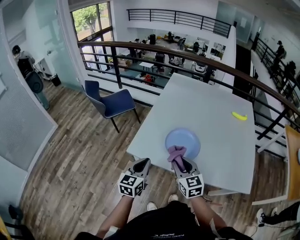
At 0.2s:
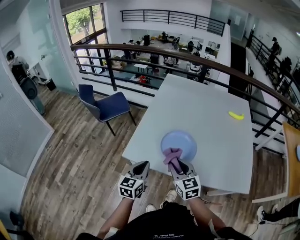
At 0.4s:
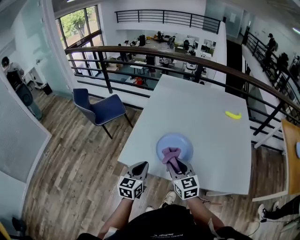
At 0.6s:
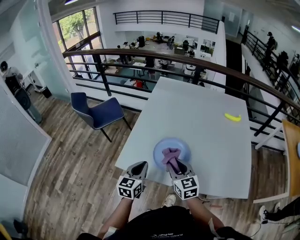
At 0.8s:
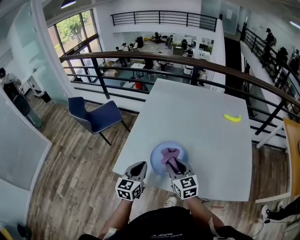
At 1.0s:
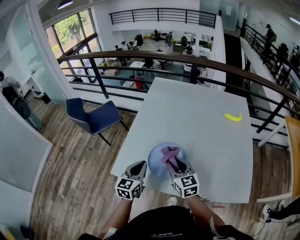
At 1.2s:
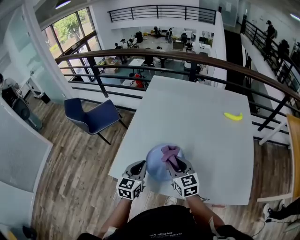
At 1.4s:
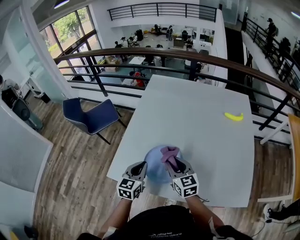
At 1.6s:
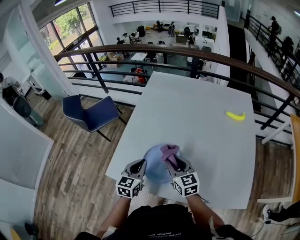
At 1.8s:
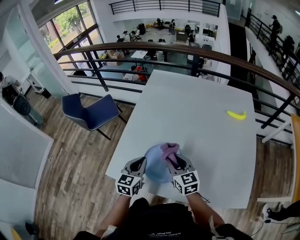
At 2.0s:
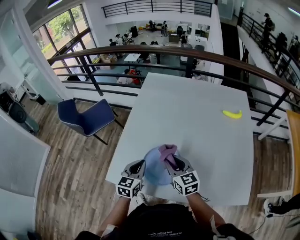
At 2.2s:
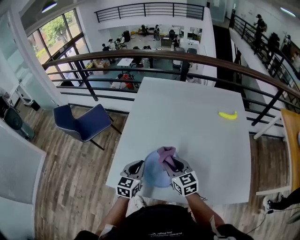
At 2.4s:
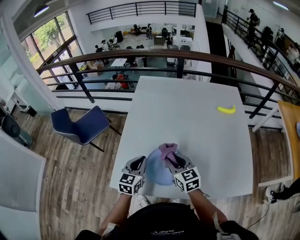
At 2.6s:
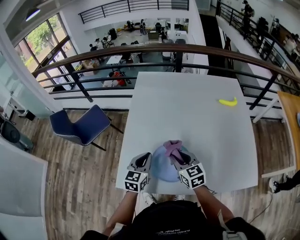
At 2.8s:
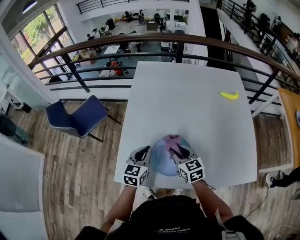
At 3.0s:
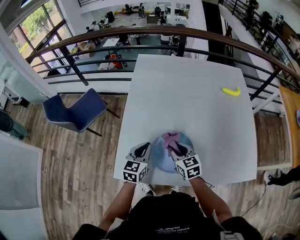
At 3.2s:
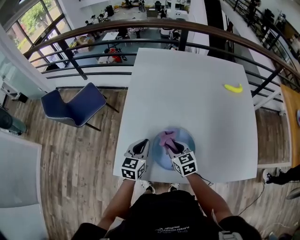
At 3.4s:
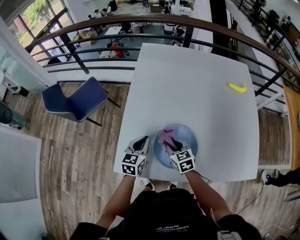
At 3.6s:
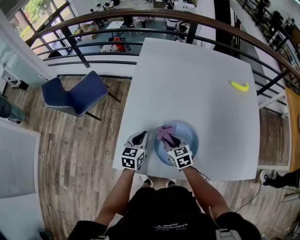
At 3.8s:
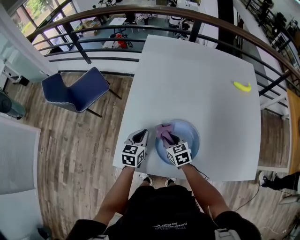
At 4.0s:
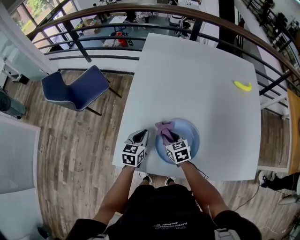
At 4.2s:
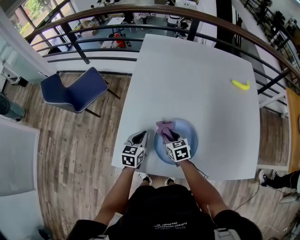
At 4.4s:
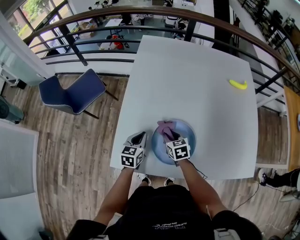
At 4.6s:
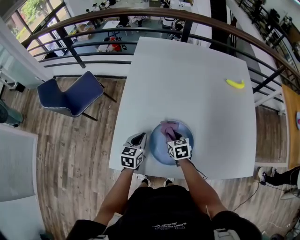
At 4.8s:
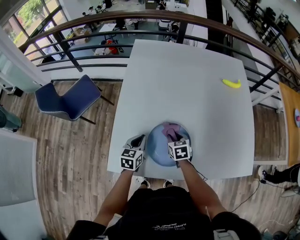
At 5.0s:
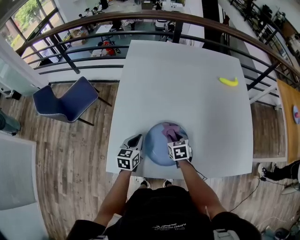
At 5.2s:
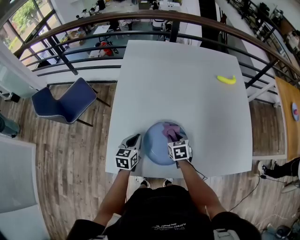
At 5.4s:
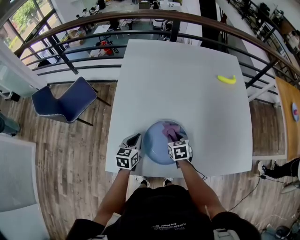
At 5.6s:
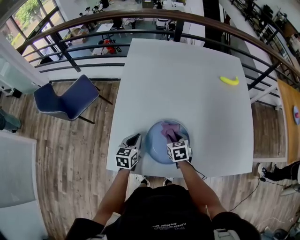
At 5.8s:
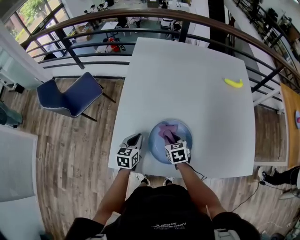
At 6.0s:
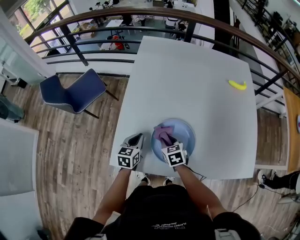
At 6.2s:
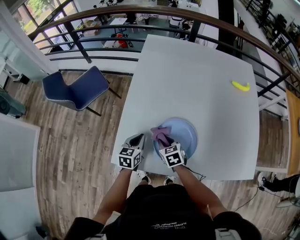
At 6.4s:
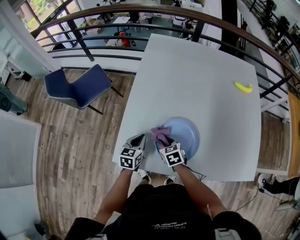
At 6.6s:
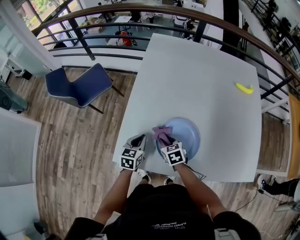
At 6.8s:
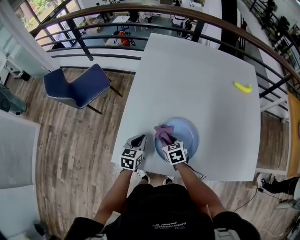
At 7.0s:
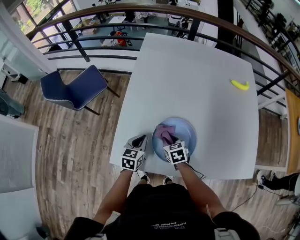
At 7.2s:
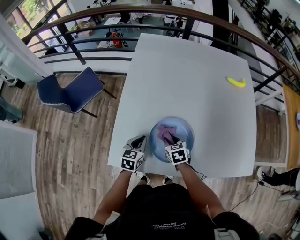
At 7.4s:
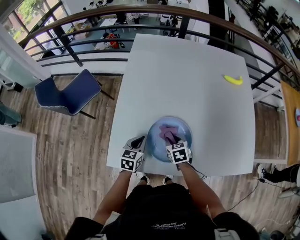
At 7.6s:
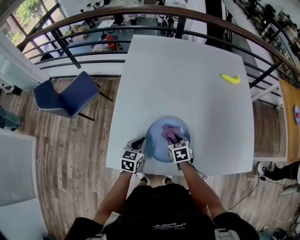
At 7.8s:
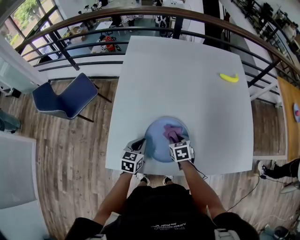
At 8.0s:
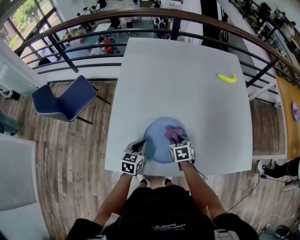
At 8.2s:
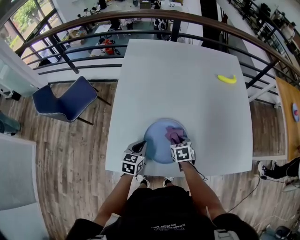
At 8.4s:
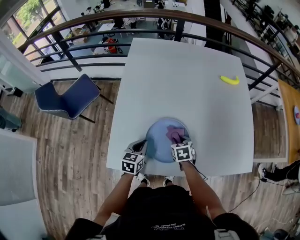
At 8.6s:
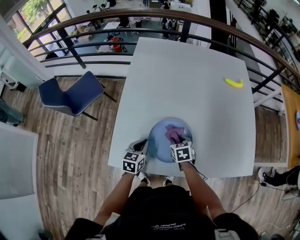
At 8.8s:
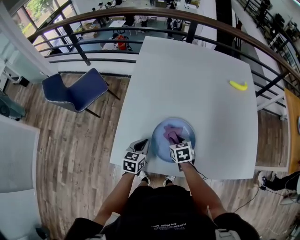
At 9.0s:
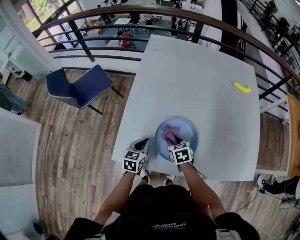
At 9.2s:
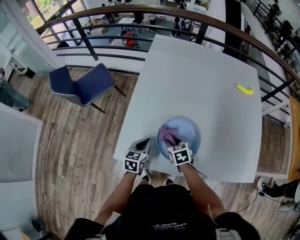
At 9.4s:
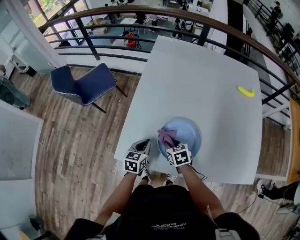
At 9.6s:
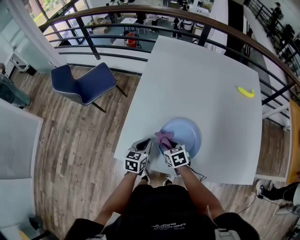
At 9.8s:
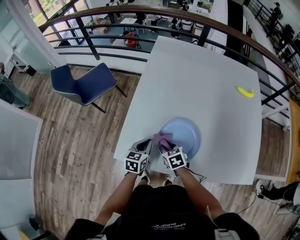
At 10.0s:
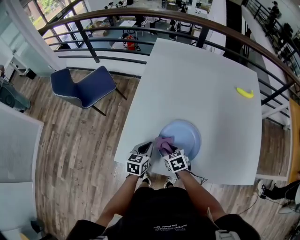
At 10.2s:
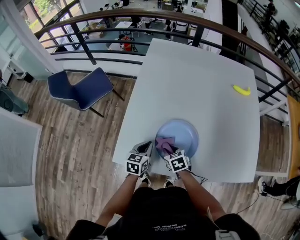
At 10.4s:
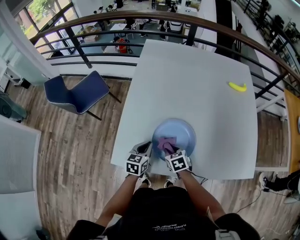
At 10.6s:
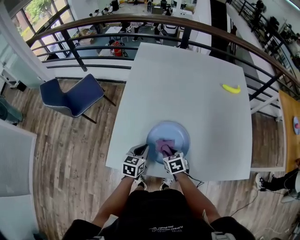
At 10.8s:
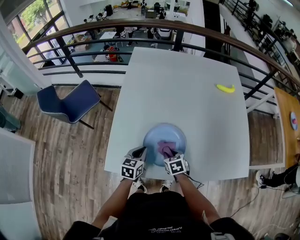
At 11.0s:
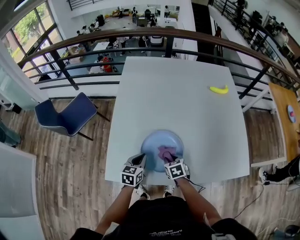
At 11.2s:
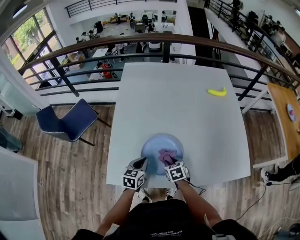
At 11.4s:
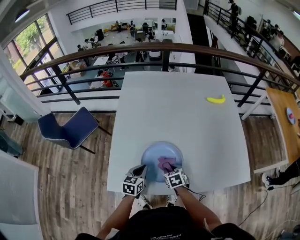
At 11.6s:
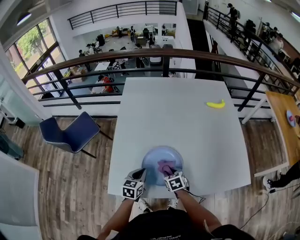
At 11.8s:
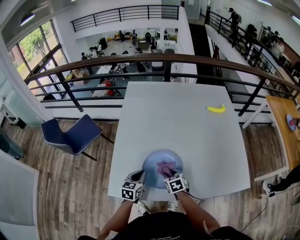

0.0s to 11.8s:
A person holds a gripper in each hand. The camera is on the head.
0.0s to 1.4s: The grippers both shift forward and to the right by about 25 cm.
1.4s to 3.0s: The left gripper travels forward by approximately 10 cm, while the right gripper travels downward by about 10 cm.
3.0s to 4.4s: Both grippers move downward, roughly 10 cm.
4.4s to 6.0s: The right gripper moves some 10 cm to the right and comes back.
6.0s to 7.4s: The right gripper shifts about 5 cm to the right.
7.4s to 8.8s: The grippers stay close to where they were, moving slightly.
8.8s to 10.4s: The right gripper moves backward, roughly 5 cm.
10.4s to 11.8s: The right gripper moves to the right, some 5 cm.

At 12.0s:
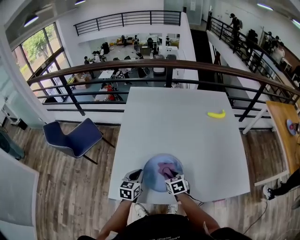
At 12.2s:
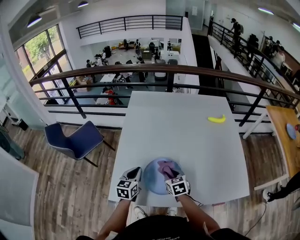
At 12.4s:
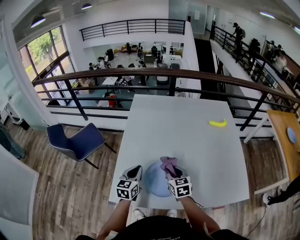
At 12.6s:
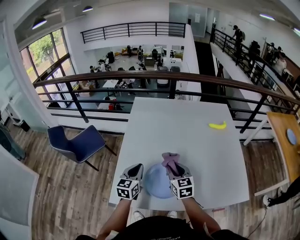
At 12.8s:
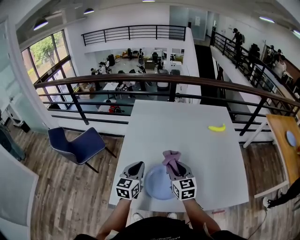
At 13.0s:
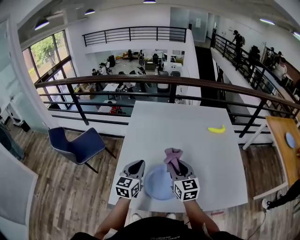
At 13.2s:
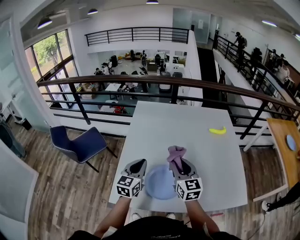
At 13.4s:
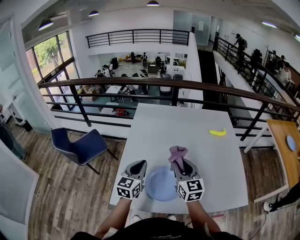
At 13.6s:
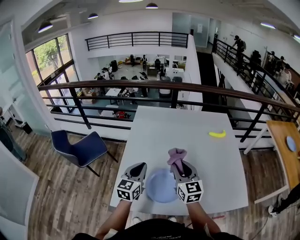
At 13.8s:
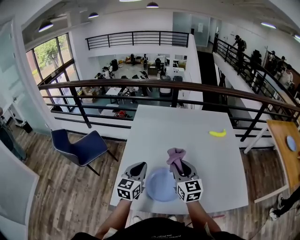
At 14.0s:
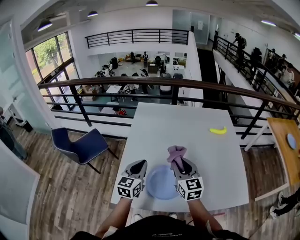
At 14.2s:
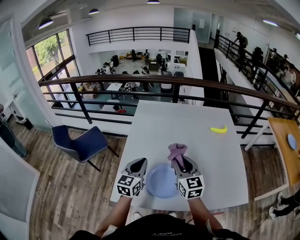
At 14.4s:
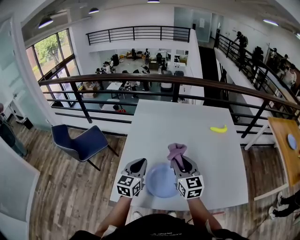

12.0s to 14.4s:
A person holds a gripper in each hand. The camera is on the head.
12.0s to 13.2s: The left gripper is displaced upward by about 15 cm, and changes its angle by roughly 20 degrees; the right gripper shifts about 25 cm upward, and angles its fingers upward, by roughly 40 degrees.
13.2s to 14.4s: The grippers move only a little.

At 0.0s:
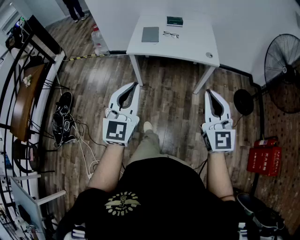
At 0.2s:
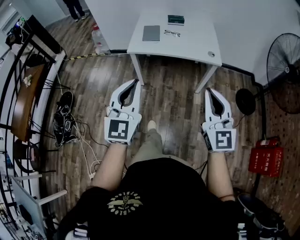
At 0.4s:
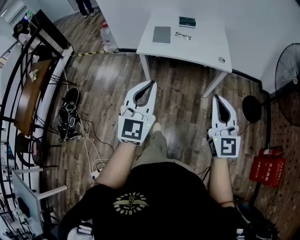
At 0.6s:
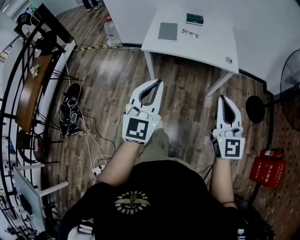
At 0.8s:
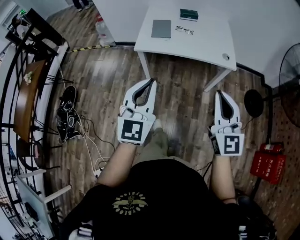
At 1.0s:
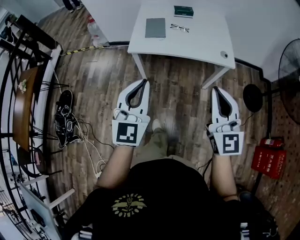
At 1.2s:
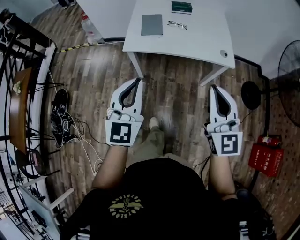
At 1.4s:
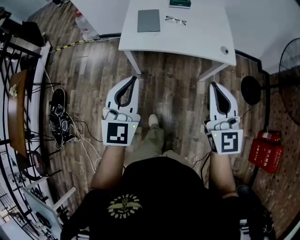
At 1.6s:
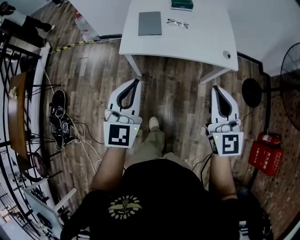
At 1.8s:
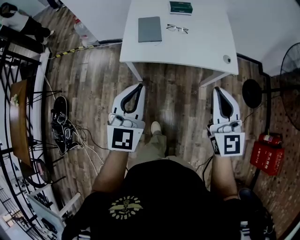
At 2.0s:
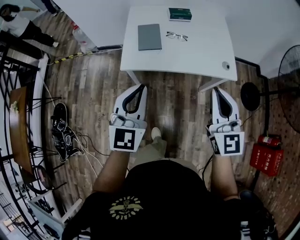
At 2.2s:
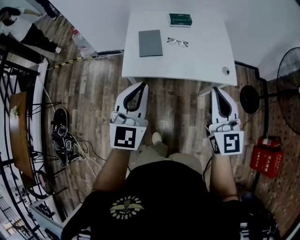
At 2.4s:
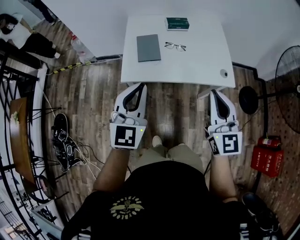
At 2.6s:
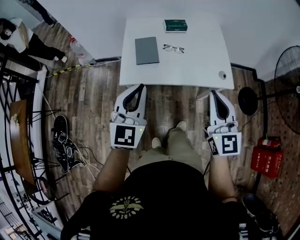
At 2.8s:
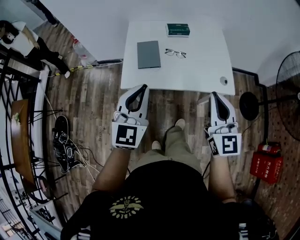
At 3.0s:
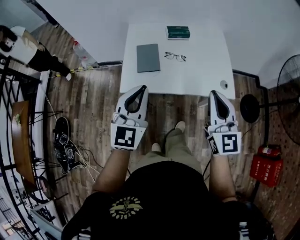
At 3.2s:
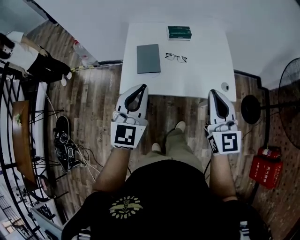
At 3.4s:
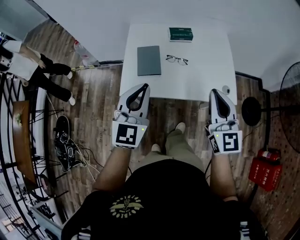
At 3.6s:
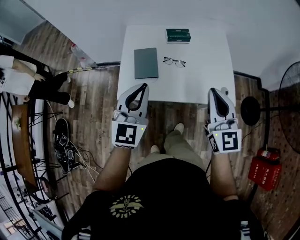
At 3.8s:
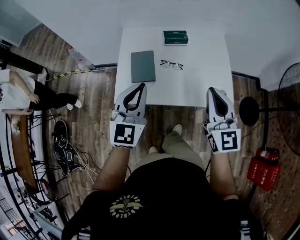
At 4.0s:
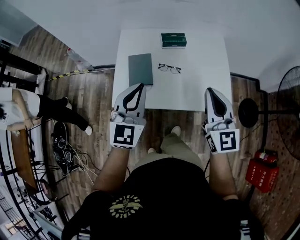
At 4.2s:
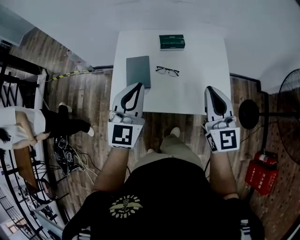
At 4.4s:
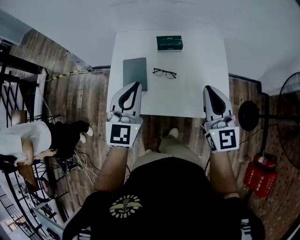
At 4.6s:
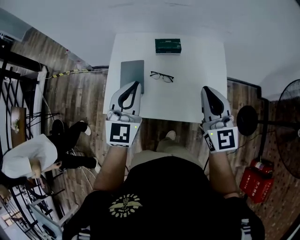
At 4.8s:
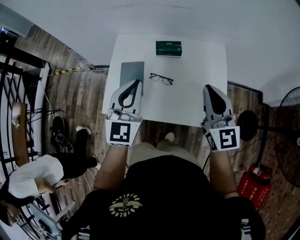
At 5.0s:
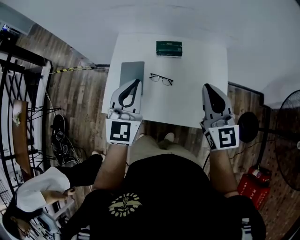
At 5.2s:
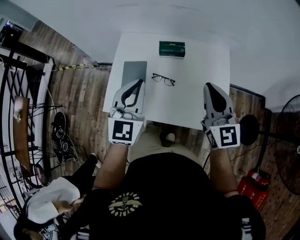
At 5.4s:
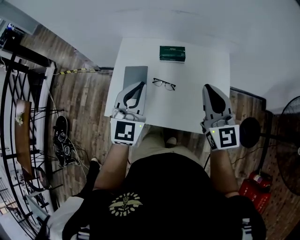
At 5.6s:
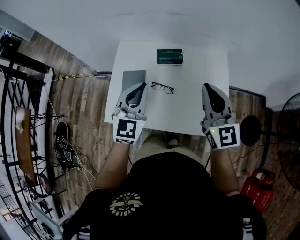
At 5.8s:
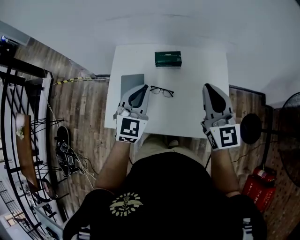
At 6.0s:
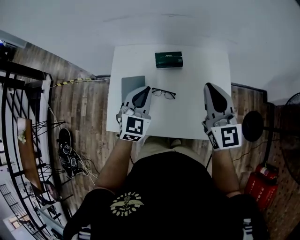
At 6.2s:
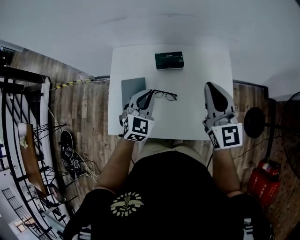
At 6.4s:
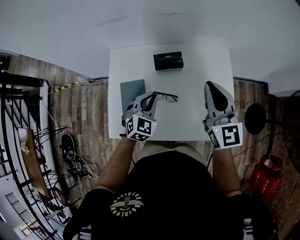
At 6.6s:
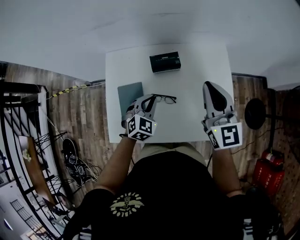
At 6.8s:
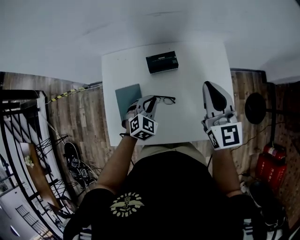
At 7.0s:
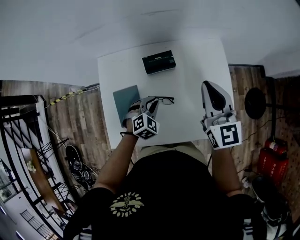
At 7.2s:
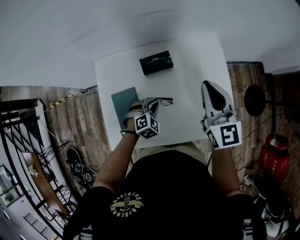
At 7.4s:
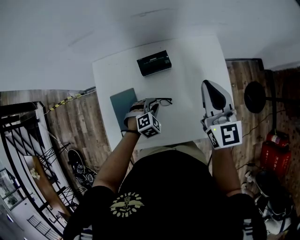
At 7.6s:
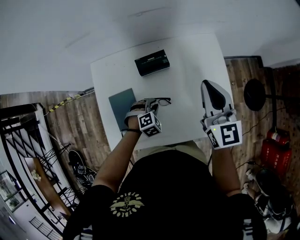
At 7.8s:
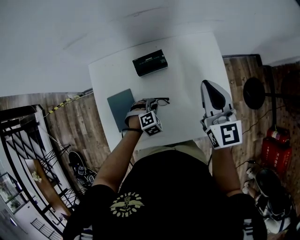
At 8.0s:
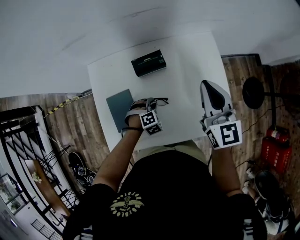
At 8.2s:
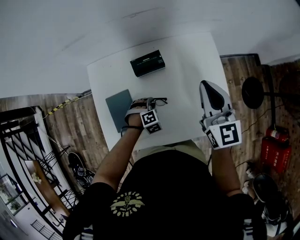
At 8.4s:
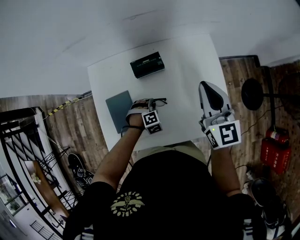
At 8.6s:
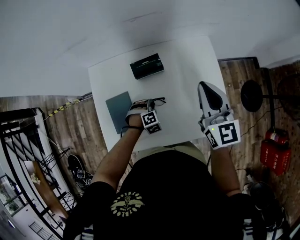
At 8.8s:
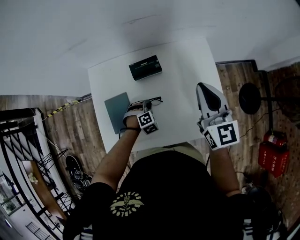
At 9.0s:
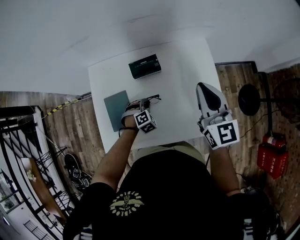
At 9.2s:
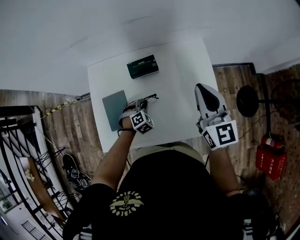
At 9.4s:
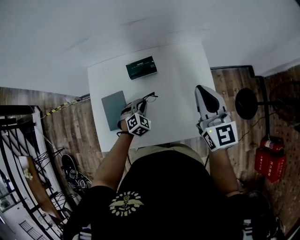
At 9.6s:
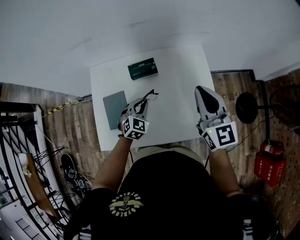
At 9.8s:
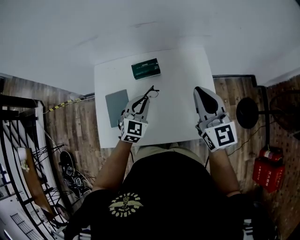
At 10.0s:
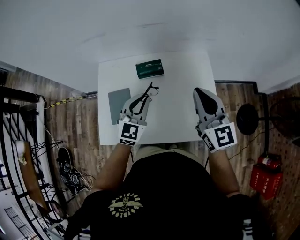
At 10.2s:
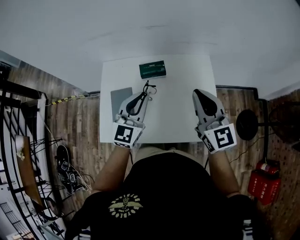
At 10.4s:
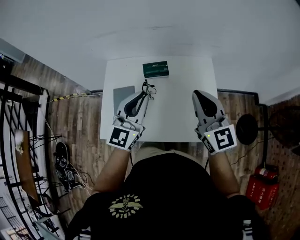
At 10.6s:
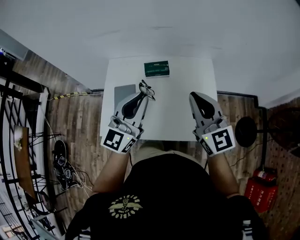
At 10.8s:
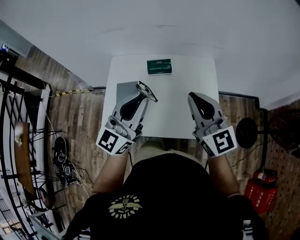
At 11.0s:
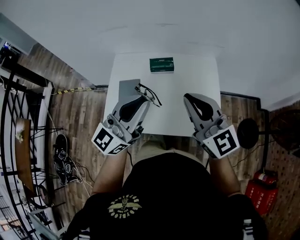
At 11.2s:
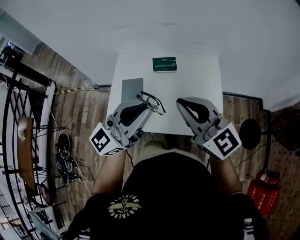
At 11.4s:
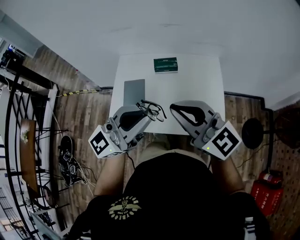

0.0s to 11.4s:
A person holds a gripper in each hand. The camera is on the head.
0.0s to 1.4s: Both grippers travel together forward, some 25 cm.
1.4s to 2.8s: Both grippers travel together forward, some 20 cm.
2.8s to 4.2s: Both grippers travel together forward, roughly 20 cm.
4.2s to 5.6s: The two grippers go about 15 cm forward and to the right.
5.6s to 7.2s: The right gripper heads forward and downward, covering some 15 cm; the left gripper heads downward, covering approximately 30 cm, and points its fingers roughly 40 degrees further downward.
7.2s to 8.6s: The left gripper goes some 5 cm downward, and turns by approximately 20 degrees.
8.6s to 10.0s: The left gripper heads upward, covering approximately 30 cm, and points its fingers about 50 degrees further upward; the right gripper is displaced backward and upward by roughly 10 cm.
10.0s to 11.4s: The right gripper travels backward, to the left and upward by approximately 25 cm, and swivels approximately 40 degrees. Meanwhile the left gripper travels backward and upward by about 30 cm, and tips its fingers upward by approximately 40 degrees.
